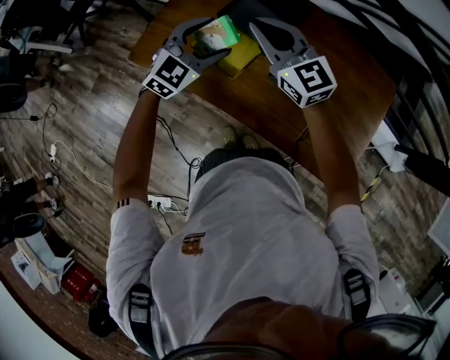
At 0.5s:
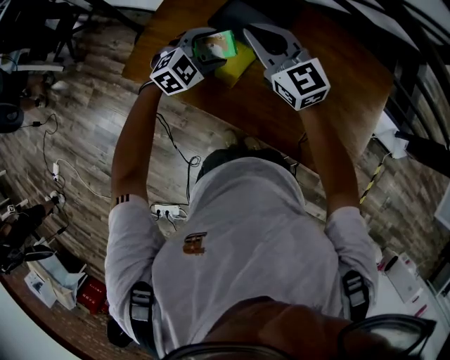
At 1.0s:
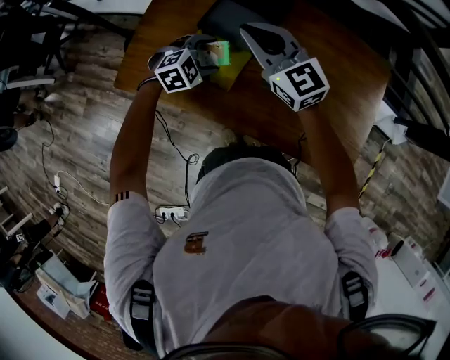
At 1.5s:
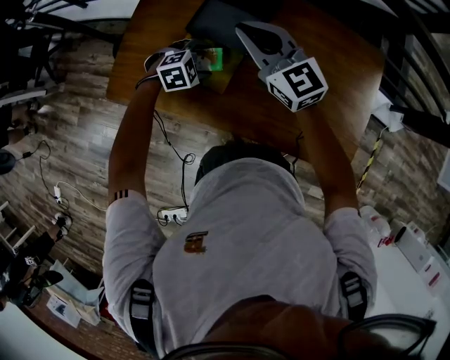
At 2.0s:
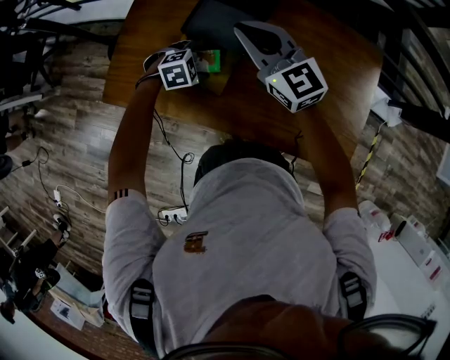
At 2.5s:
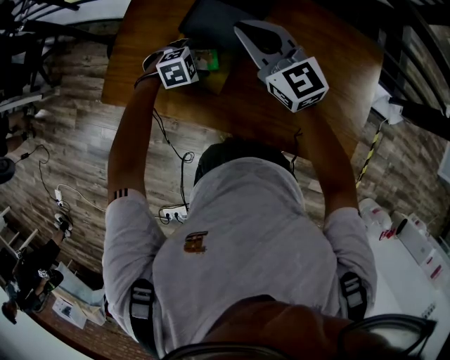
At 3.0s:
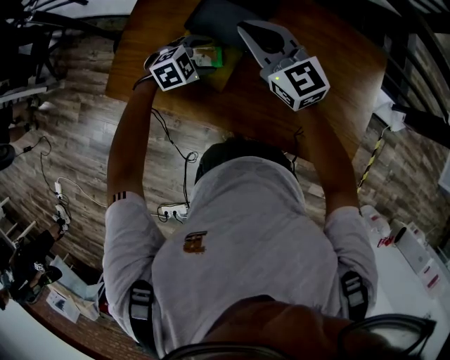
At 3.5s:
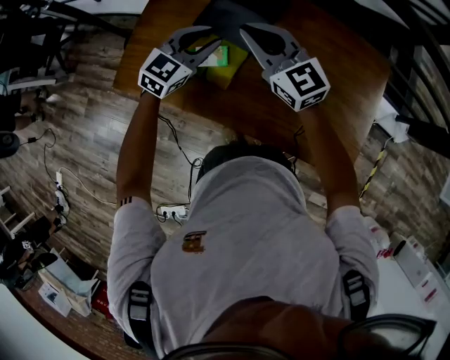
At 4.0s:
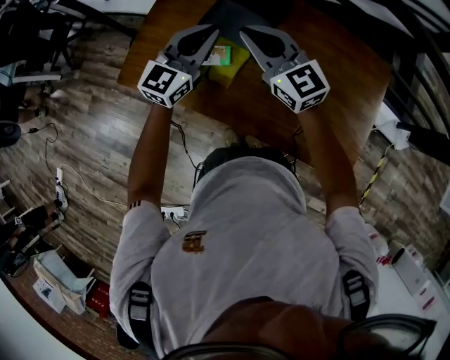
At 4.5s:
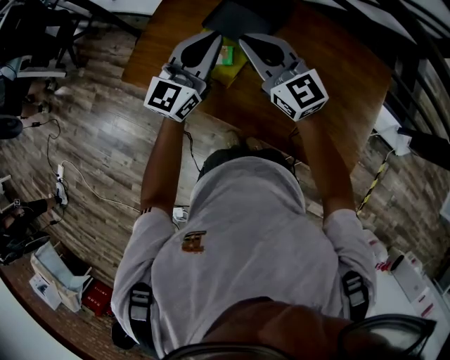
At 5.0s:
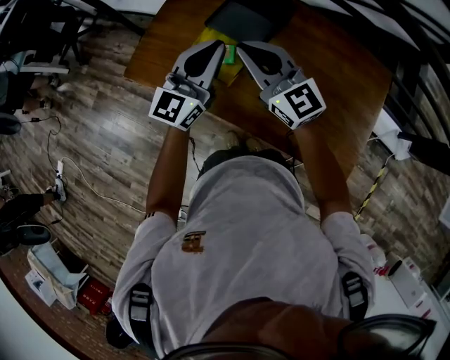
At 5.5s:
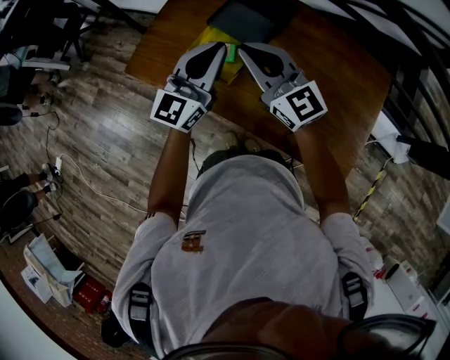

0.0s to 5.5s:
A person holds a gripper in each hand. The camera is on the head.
0.0s to 2.0s: The left gripper goes some 20 cm downward, and tilts its fingers approximately 40 degrees downward. Meanwhile the right gripper ends up some 10 cm from where it was.
2.0s to 3.5s: The left gripper goes approximately 20 cm upward, tilts its fingers roughly 40 degrees upward, and closes.
3.5s to 5.5s: The right gripper goes roughly 10 cm backward, while the left gripper heads backward and upward, covering some 20 cm, and tilts its fingers approximately 30 degrees upward.

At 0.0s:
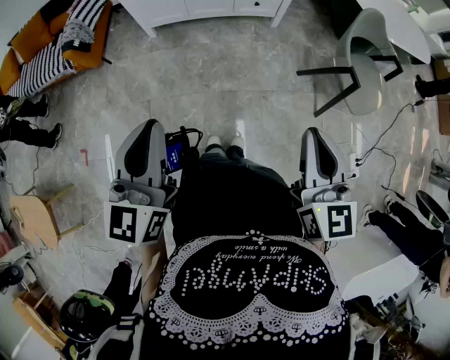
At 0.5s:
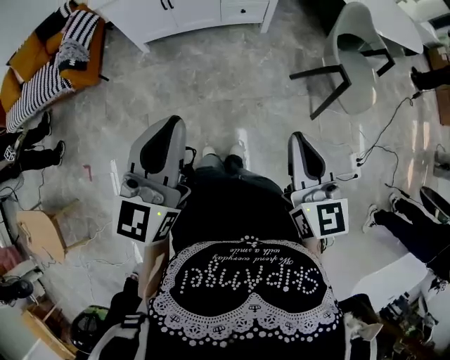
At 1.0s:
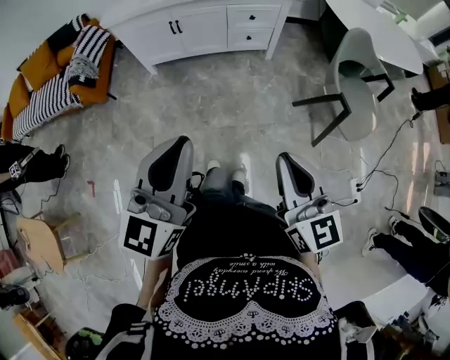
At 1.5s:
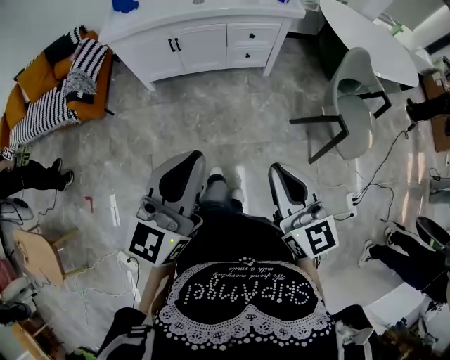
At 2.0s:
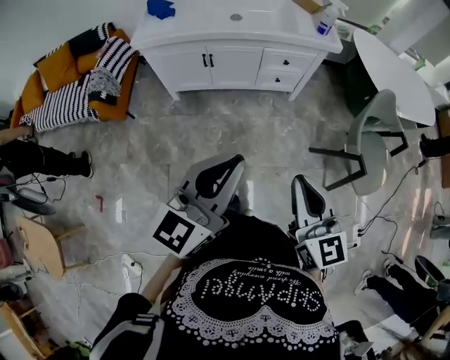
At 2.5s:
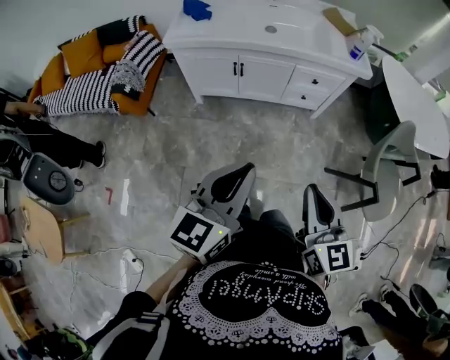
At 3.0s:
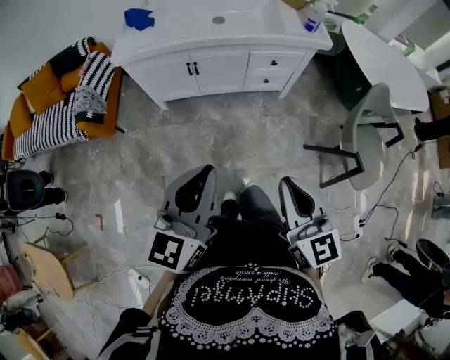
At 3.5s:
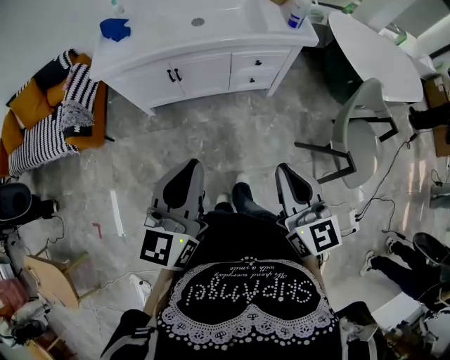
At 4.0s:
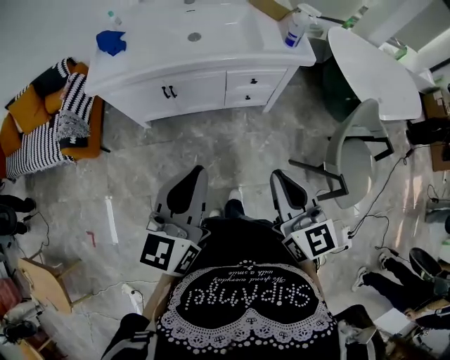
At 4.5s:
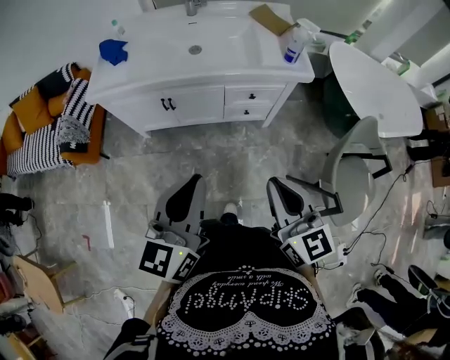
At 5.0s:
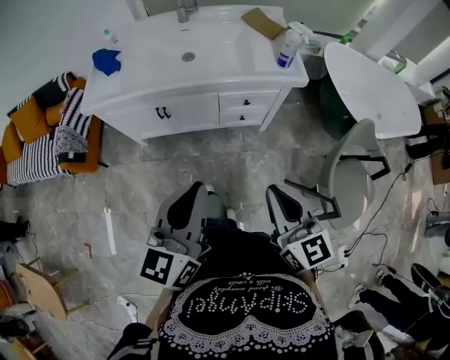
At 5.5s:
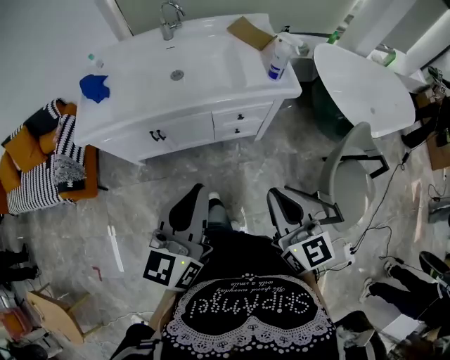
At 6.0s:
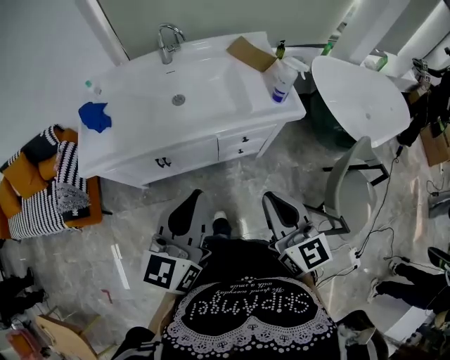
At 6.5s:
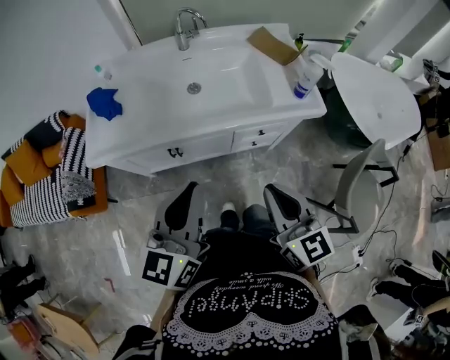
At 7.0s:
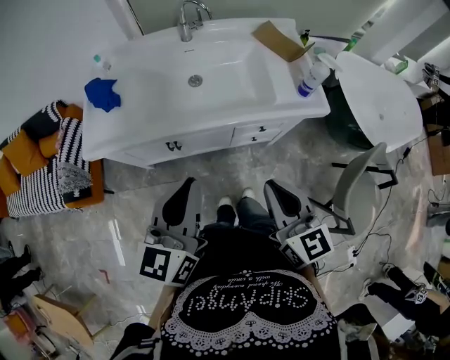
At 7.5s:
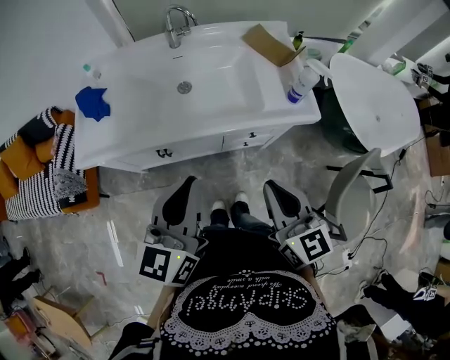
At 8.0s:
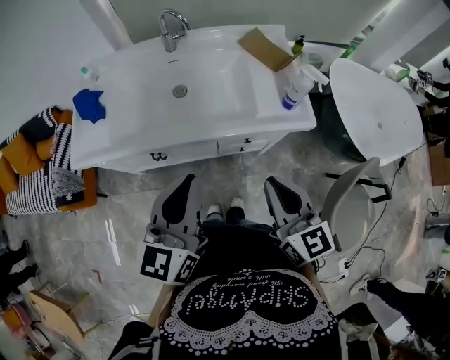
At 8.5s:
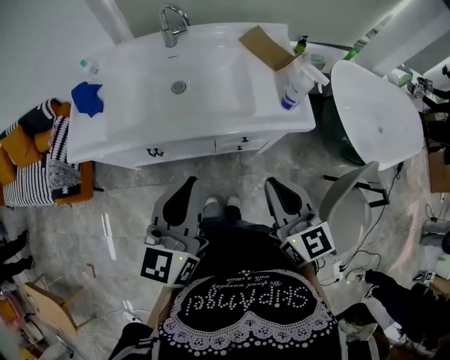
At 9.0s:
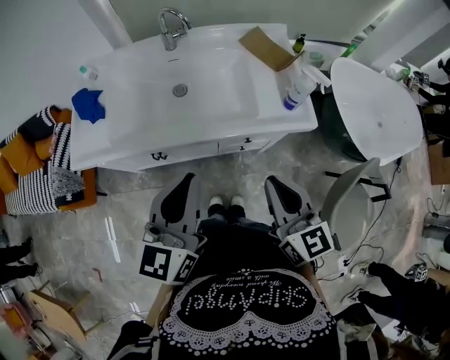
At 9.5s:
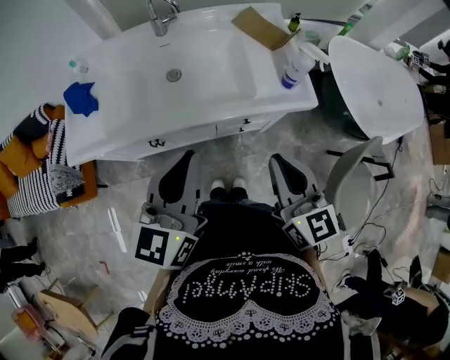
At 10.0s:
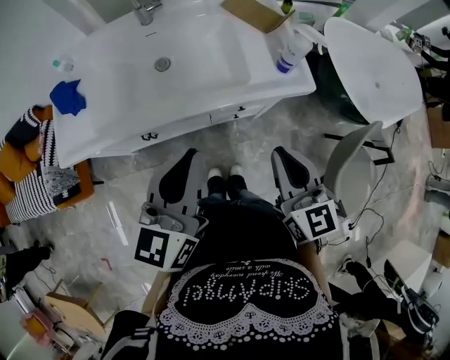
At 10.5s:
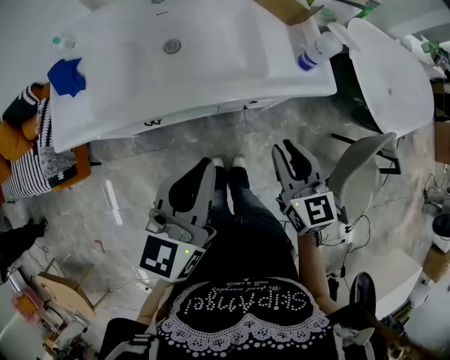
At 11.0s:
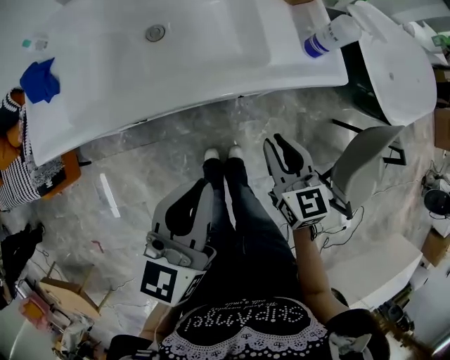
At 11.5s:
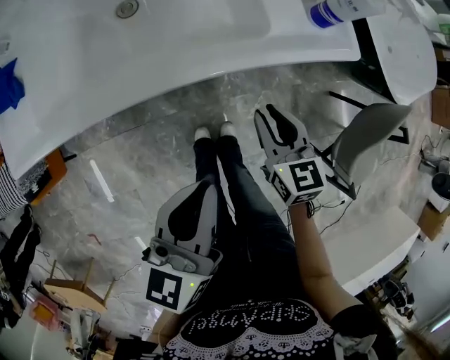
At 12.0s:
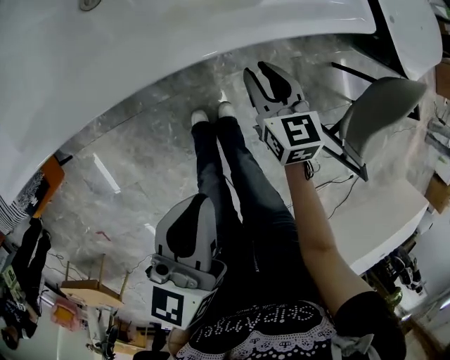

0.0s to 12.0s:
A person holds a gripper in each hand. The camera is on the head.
0.0s to 2.0s: The left gripper travels forward and to the right by approximately 20 cm, and swivels approximately 20 degrees. Meanwhile the right gripper moves forward and to the left, about 20 cm.
2.0s to 4.0s: The grippers both shift forward by some 20 cm.
4.0s to 6.0s: The two grippers go roughly 20 cm forward.
6.0s to 8.0s: The two grippers go some 10 cm forward. The left gripper reaches about 5 cm to the left, then returns.
8.0s to 10.0s: The grippers make only small movements.
10.0s to 12.0s: The right gripper moves downward, roughly 30 cm, and turns by approximately 20 degrees. The left gripper goes approximately 20 cm downward, and rotates approximately 20 degrees.

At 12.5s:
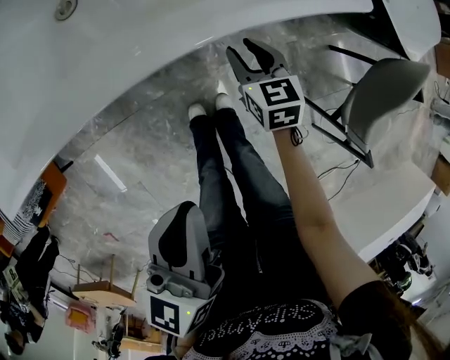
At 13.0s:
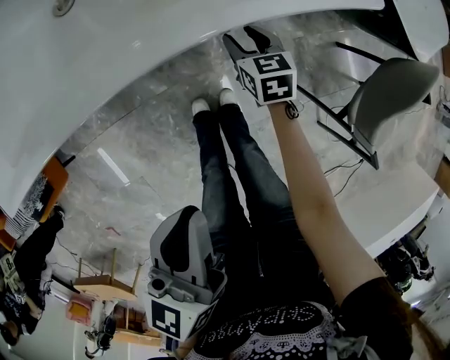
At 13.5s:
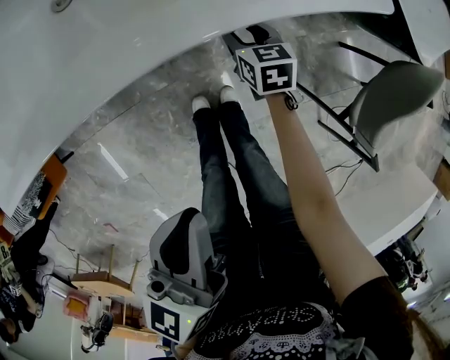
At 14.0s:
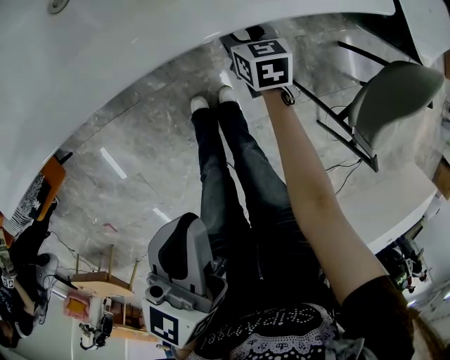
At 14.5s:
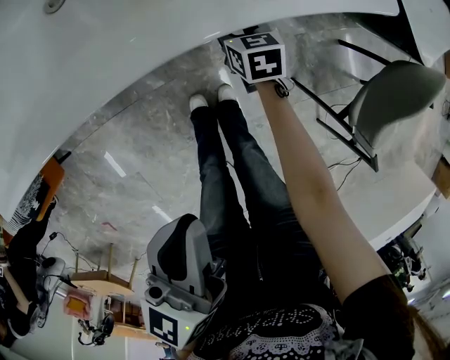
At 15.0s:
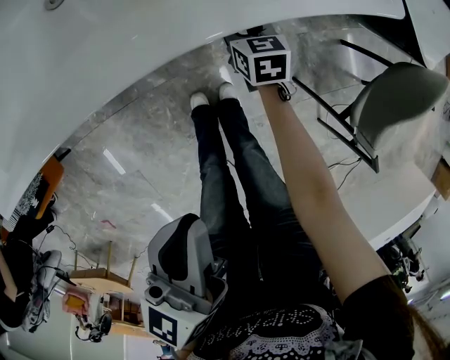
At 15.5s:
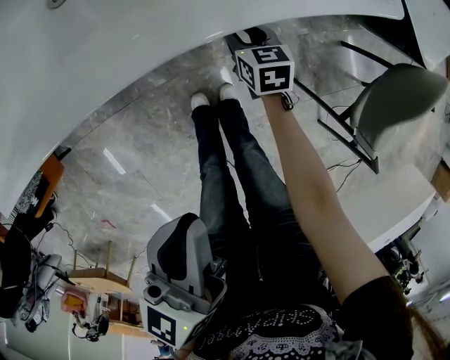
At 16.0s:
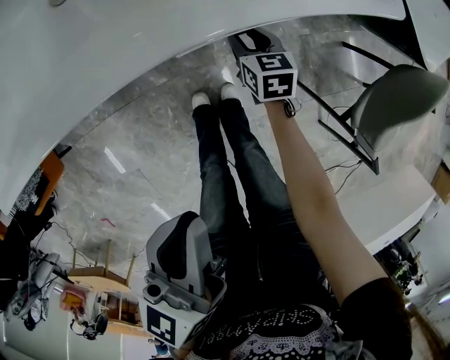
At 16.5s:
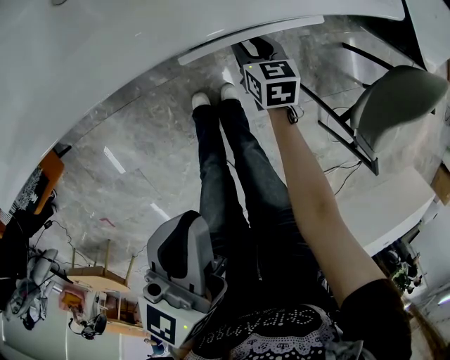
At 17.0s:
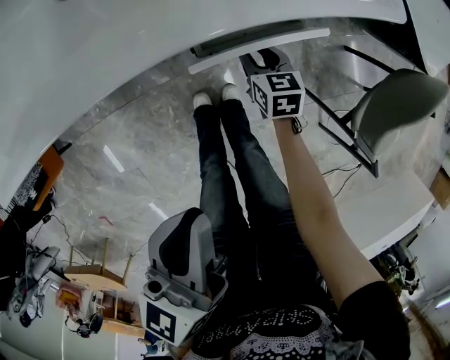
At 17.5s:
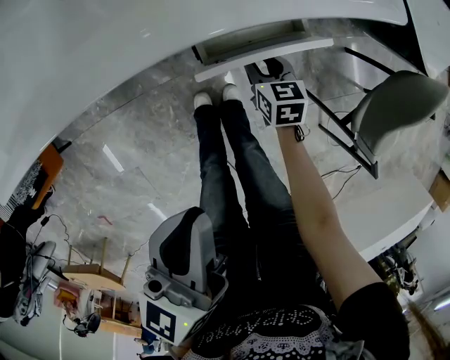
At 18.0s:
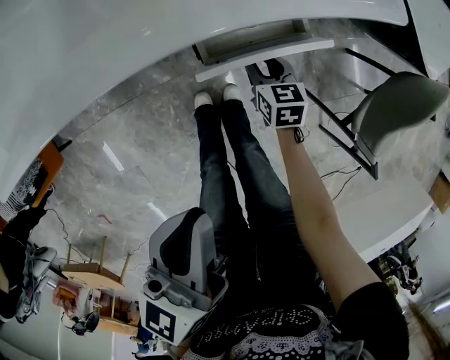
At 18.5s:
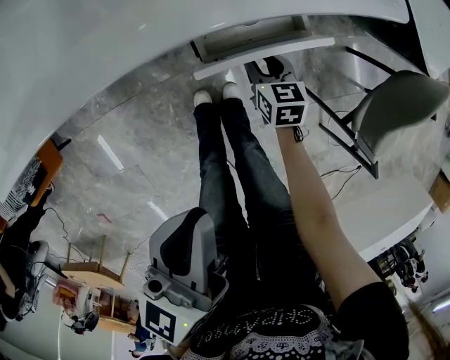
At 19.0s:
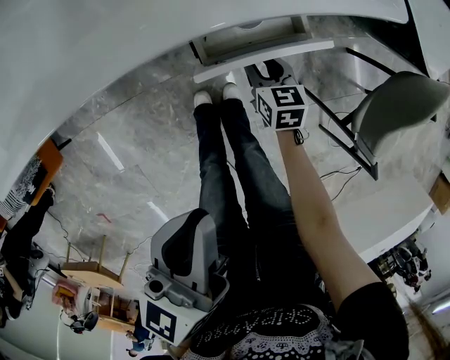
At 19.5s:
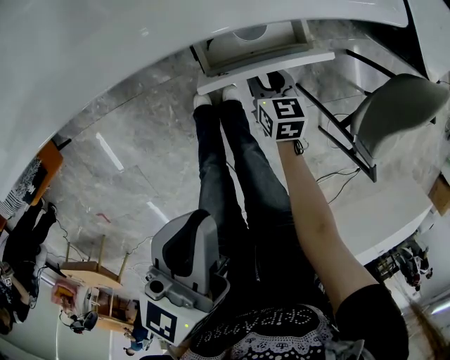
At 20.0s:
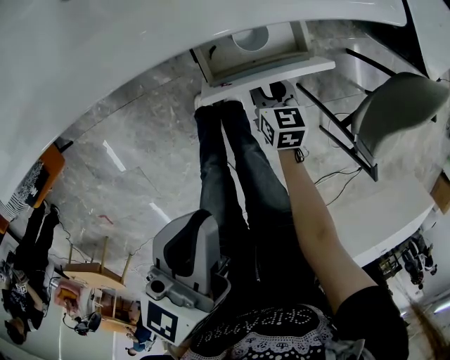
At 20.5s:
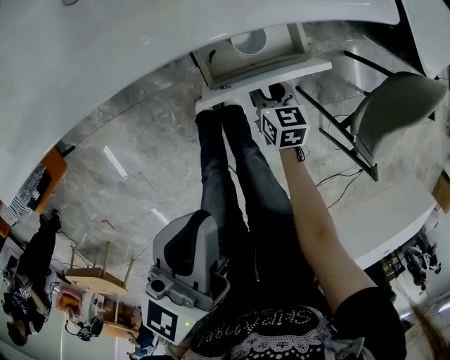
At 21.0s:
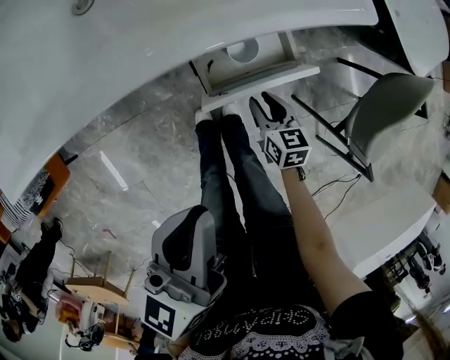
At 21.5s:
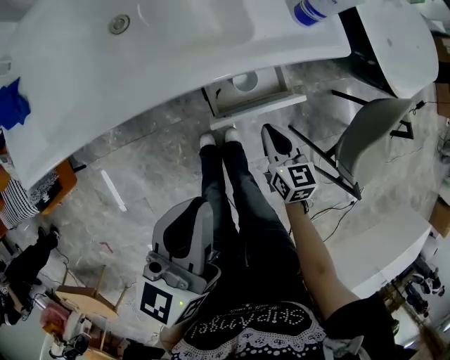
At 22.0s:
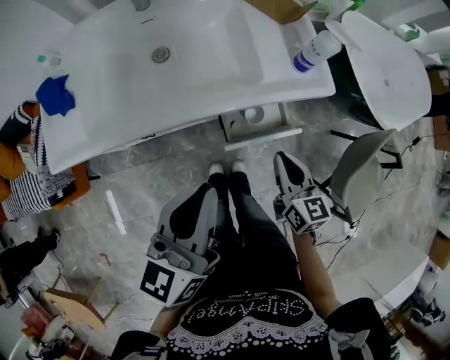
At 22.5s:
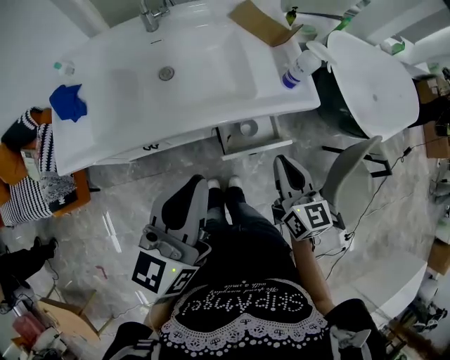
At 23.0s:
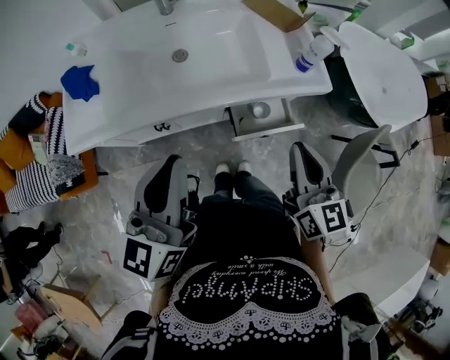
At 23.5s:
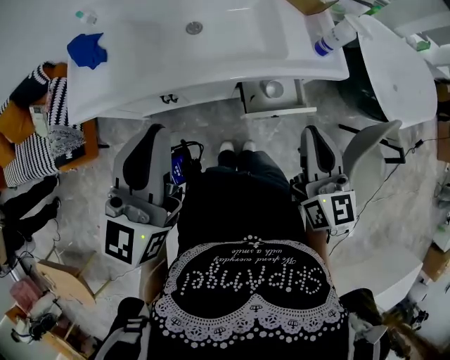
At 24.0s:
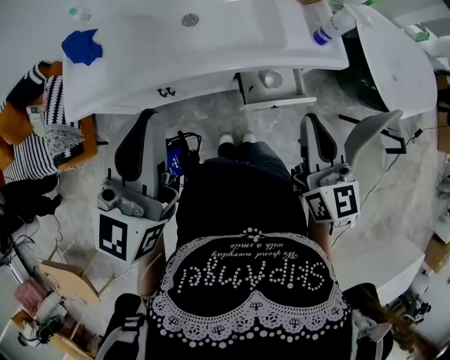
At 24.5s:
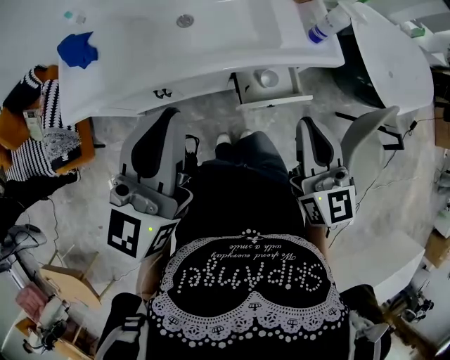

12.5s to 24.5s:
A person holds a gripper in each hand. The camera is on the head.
12.5s to 14.5s: The right gripper shifts approximately 10 cm downward and forward.
14.5s to 16.5s: The right gripper travels backward by roughly 5 cm.
16.5s to 18.5s: The grippers make only small movements.
18.5s to 20.5s: There are only small adjustments of the grippers.
20.5s to 22.5s: The right gripper goes approximately 40 cm upward, swivels some 30 degrees, and closes its fingers. Meanwhile the left gripper travels upward by approximately 20 cm, and changes its angle by roughly 20 degrees.
22.5s to 24.5s: The left gripper goes roughly 10 cm to the left. The right gripper shifts roughly 10 cm upward.
